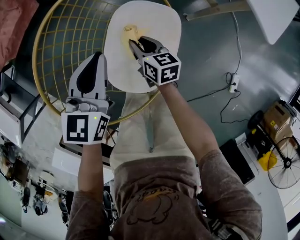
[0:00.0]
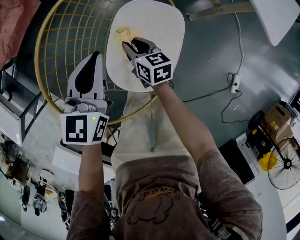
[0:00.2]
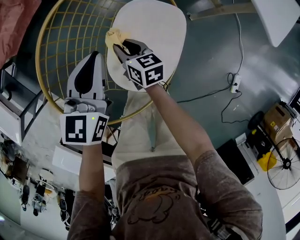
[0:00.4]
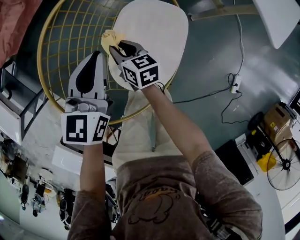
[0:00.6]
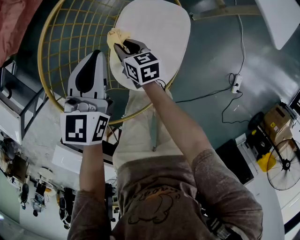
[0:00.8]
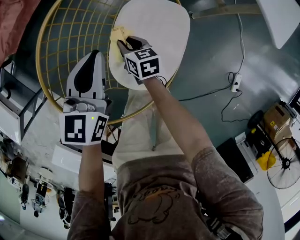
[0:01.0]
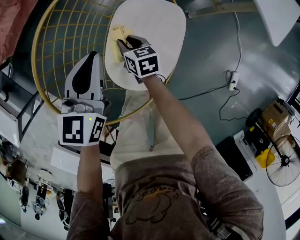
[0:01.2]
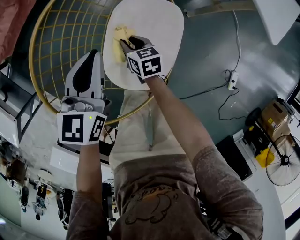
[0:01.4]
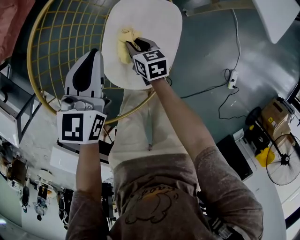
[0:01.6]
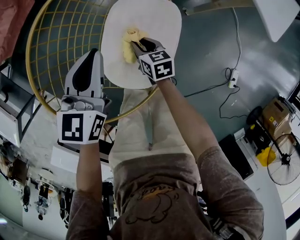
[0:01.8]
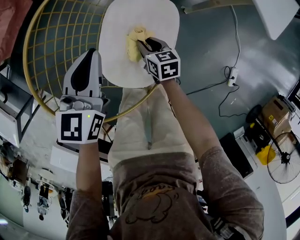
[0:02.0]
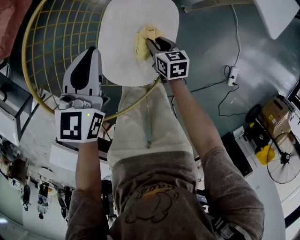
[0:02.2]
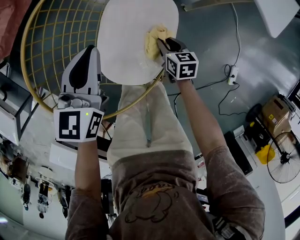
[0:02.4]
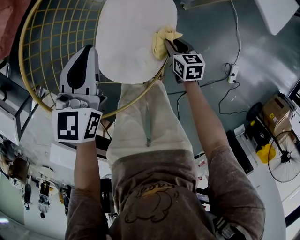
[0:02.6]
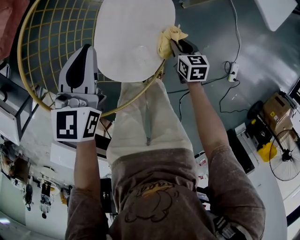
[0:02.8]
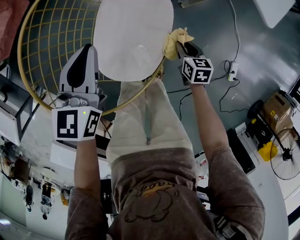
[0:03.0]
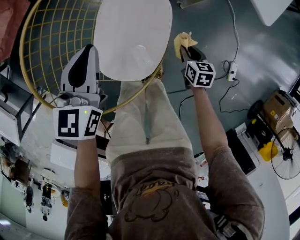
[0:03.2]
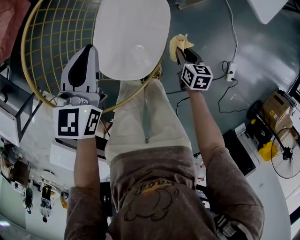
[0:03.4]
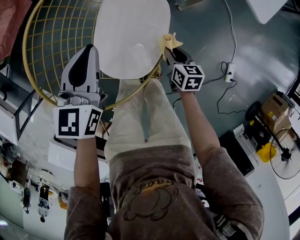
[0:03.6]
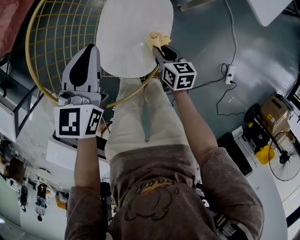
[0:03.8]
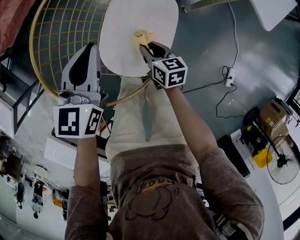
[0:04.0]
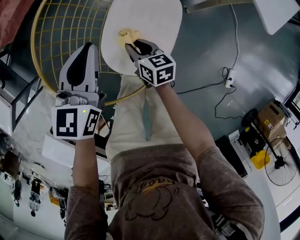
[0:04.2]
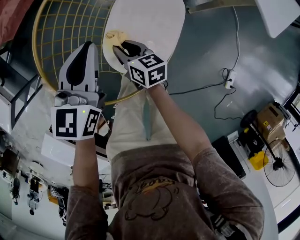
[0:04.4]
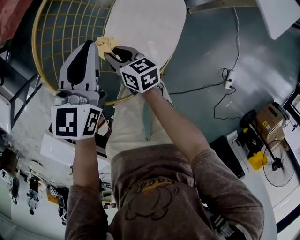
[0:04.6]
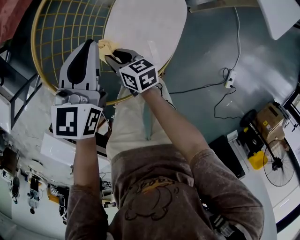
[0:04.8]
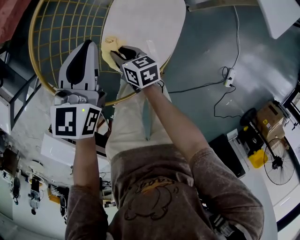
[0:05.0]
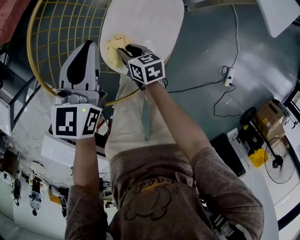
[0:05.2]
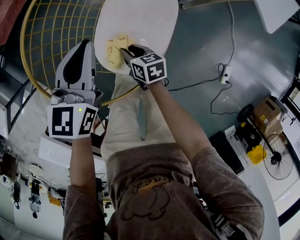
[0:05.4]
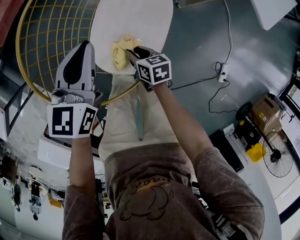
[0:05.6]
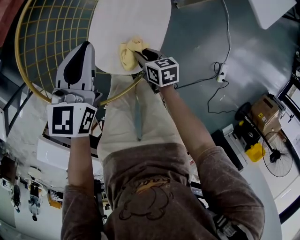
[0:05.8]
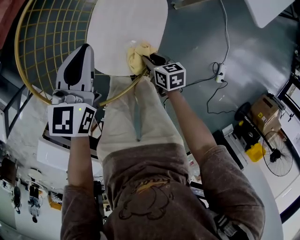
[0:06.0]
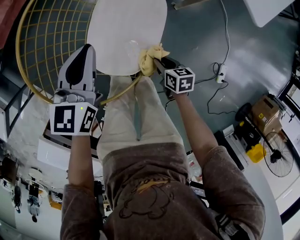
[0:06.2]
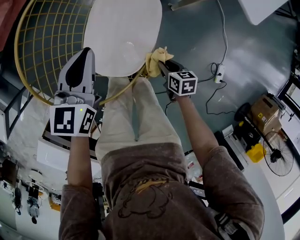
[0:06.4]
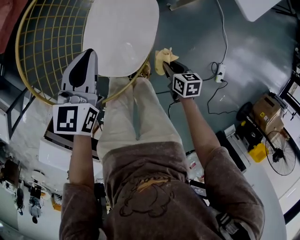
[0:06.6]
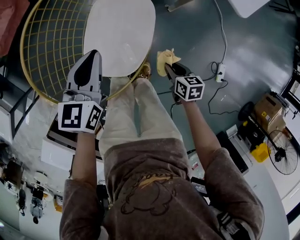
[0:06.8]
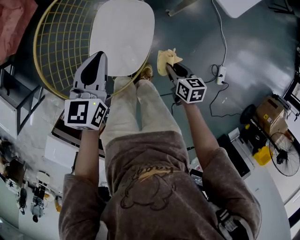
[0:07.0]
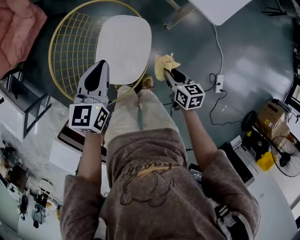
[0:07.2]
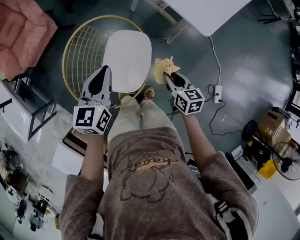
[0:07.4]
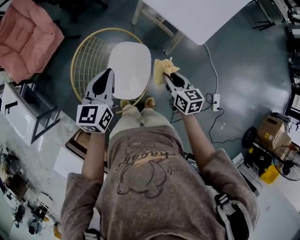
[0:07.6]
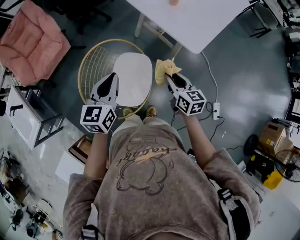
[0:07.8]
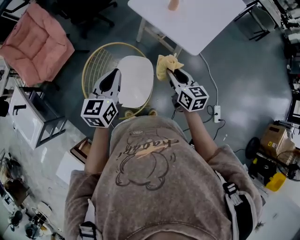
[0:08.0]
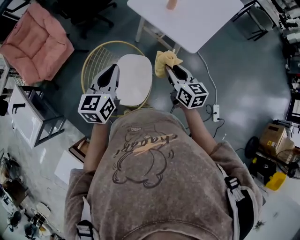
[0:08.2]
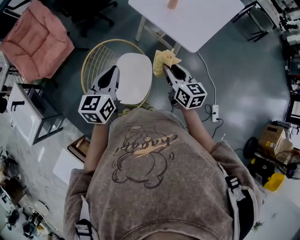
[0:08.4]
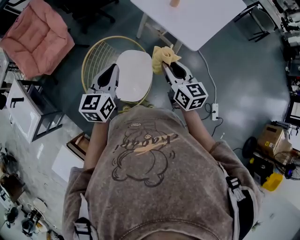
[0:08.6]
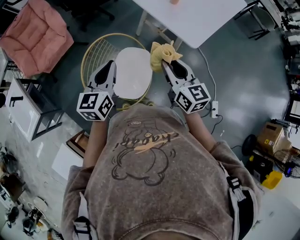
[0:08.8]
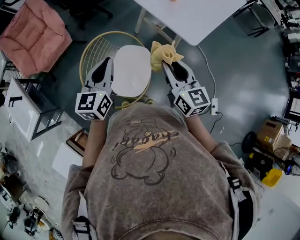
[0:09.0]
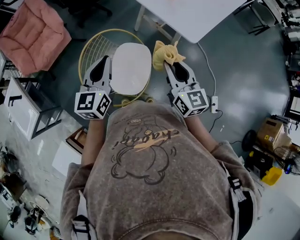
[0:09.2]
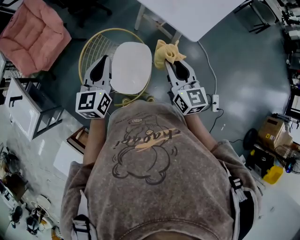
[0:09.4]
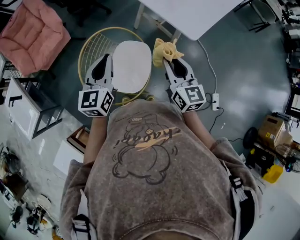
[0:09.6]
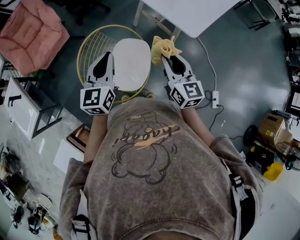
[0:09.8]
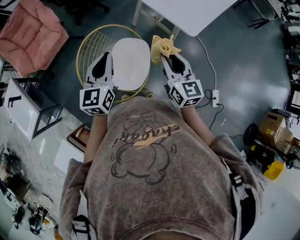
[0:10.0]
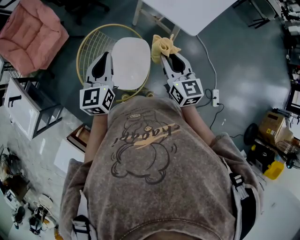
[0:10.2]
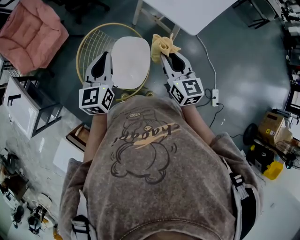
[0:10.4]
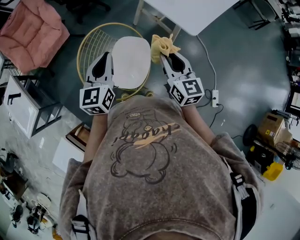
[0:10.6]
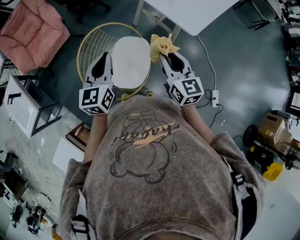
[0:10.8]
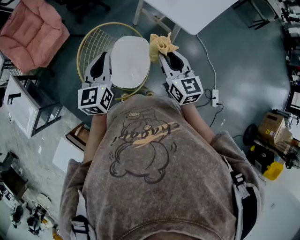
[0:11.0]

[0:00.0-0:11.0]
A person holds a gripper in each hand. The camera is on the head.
0.0 to 1.6 s: The right gripper shifts approximately 5 cm downward, and travels to the left and back again, roughly 10 cm each way.
1.6 to 3.2 s: The right gripper is displaced to the right by about 25 cm, and rotates roughly 20 degrees.
3.2 to 4.8 s: The right gripper shifts by roughly 35 cm, and rotates some 40 degrees.
4.8 to 6.2 s: The right gripper is displaced to the right and backward by roughly 25 cm, and rotates some 30 degrees, while the left gripper changes place by approximately 5 cm.
6.2 to 7.8 s: The left gripper travels upward by approximately 25 cm, while the right gripper is displaced upward by roughly 40 cm, and tips its fingers upward by some 30 degrees.
7.8 to 9.4 s: The left gripper moves about 5 cm; the right gripper moves upward, about 10 cm, and turns by approximately 20 degrees.
9.4 to 11.0 s: The grippers make only small movements.

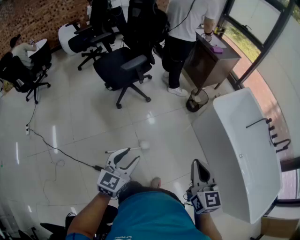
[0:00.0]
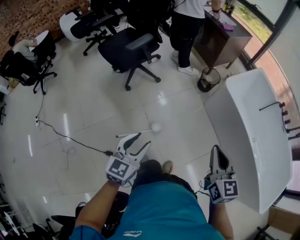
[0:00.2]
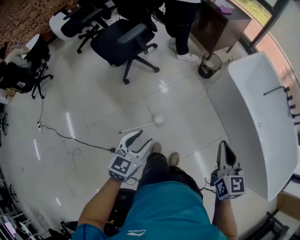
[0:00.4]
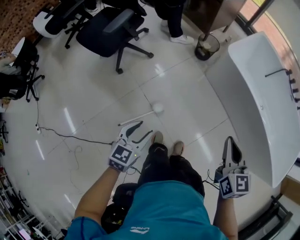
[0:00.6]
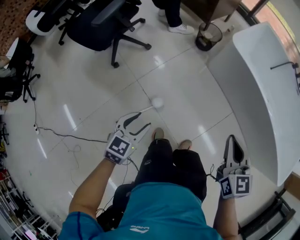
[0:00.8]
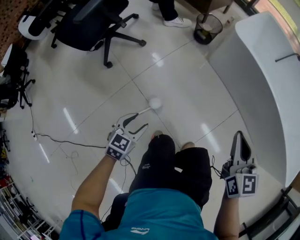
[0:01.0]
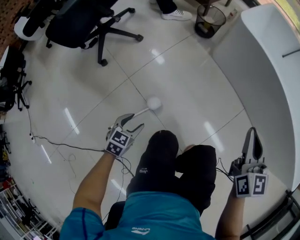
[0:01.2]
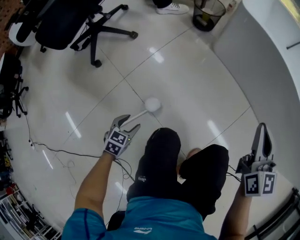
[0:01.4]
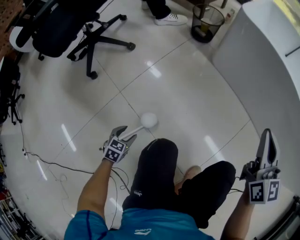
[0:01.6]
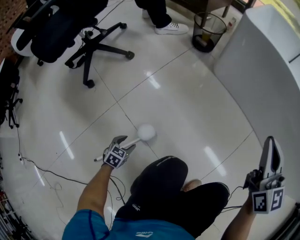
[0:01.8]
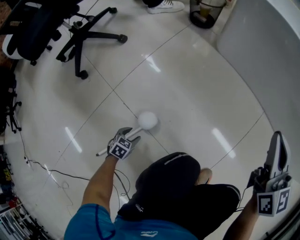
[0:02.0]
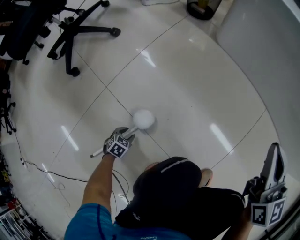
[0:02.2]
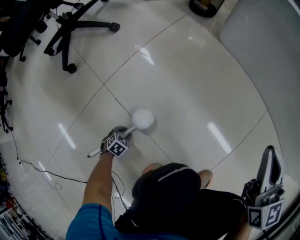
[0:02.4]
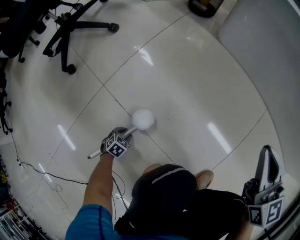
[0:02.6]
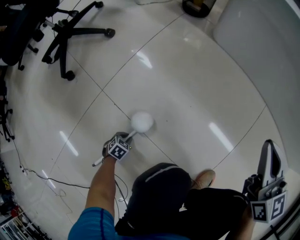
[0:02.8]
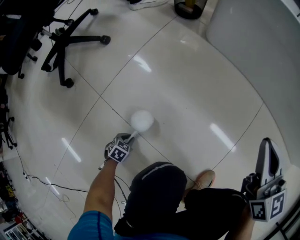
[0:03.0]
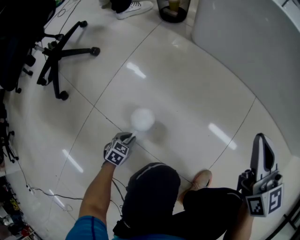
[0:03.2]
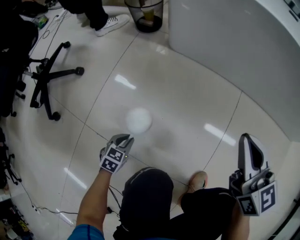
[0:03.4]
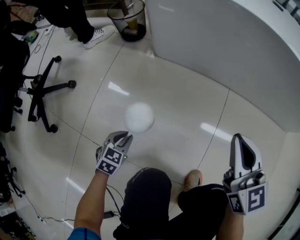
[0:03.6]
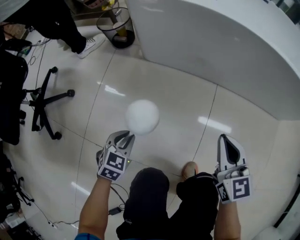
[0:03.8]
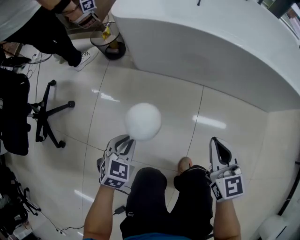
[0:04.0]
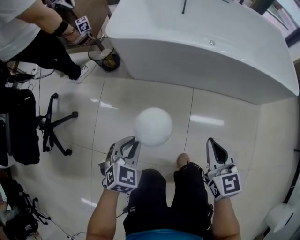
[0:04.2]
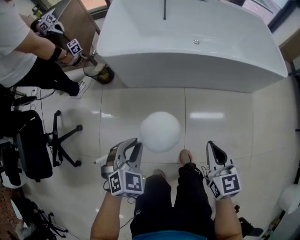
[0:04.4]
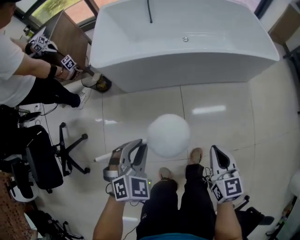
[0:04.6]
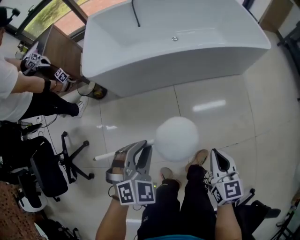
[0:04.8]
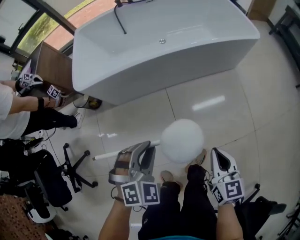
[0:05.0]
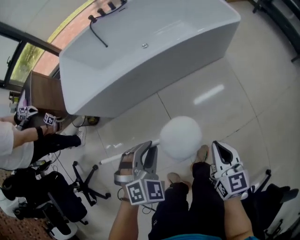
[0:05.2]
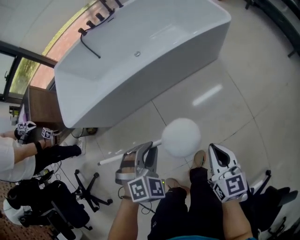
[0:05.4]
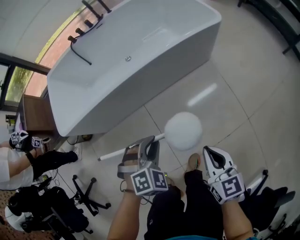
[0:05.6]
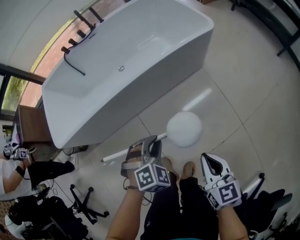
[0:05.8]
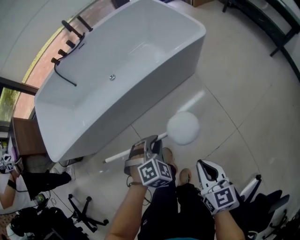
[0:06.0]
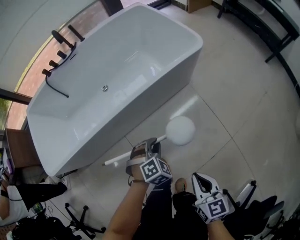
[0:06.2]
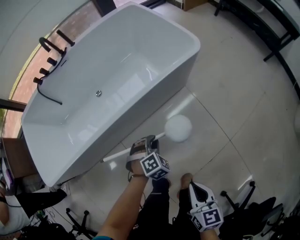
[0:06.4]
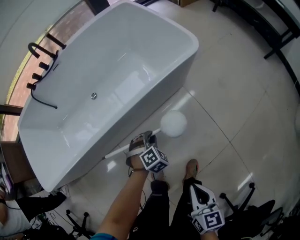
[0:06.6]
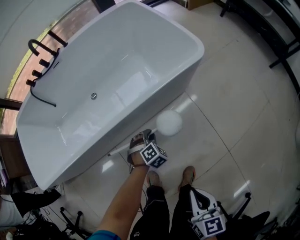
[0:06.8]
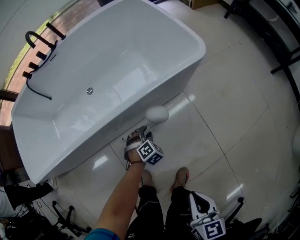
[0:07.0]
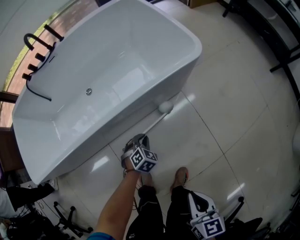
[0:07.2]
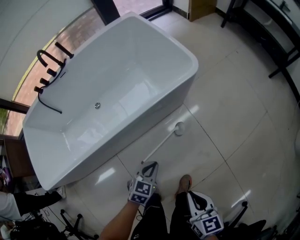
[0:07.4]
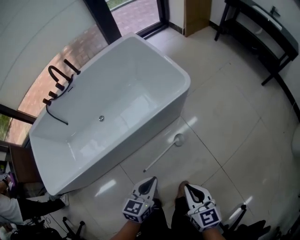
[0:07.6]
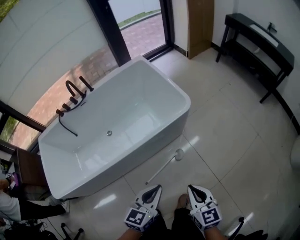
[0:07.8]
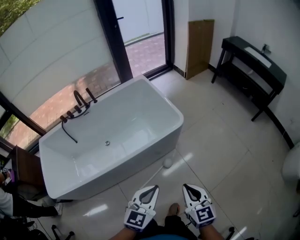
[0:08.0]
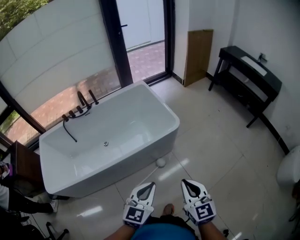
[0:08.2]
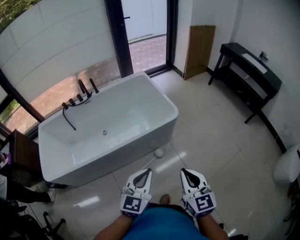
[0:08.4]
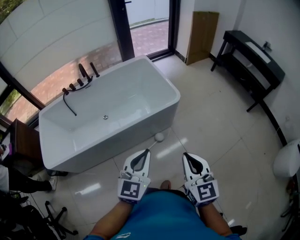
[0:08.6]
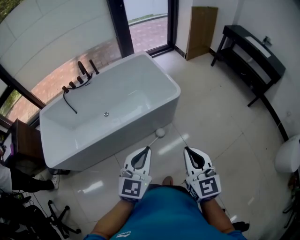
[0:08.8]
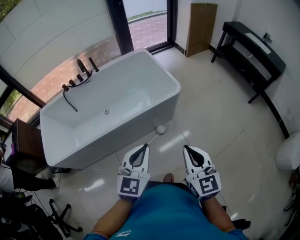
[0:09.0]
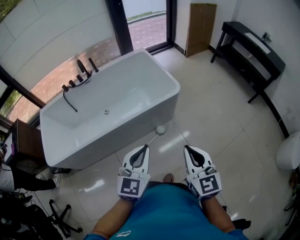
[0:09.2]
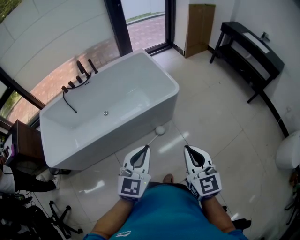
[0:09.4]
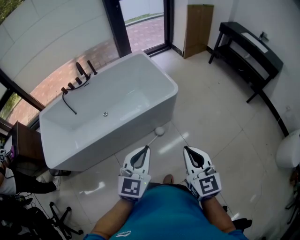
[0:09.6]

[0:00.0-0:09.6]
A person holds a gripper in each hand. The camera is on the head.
0.0 to 1.6 s: The right gripper is displaced downward and forward by about 50 cm, and swivels some 30 degrees. The left gripper heads downward, covering about 70 cm, and tips its fingers downward by approximately 30 degrees.
1.6 to 3.2 s: The grippers both shift downward by approximately 20 cm. The left gripper turns by roughly 20 degrees, and closes.
3.2 to 4.8 s: The right gripper shifts roughly 35 cm upward, and turns by approximately 50 degrees. Meanwhile the left gripper moves upward, roughly 80 cm, and rolls clockwise, seen from behind, by some 60 degrees.
4.8 to 6.4 s: The right gripper moves to the right and forward, some 40 cm, and turns by roughly 30 degrees; the left gripper travels to the right, forward and downward by roughly 70 cm, and turns by roughly 30 degrees.
6.4 to 8.0 s: The left gripper is displaced upward by about 40 cm, and points its fingers some 40 degrees further upward. The right gripper travels upward, to the right and forward by approximately 30 cm, and rotates some 20 degrees.
8.0 to 9.6 s: The left gripper is displaced backward and upward by some 10 cm, while the right gripper goes approximately 15 cm upward and backward.

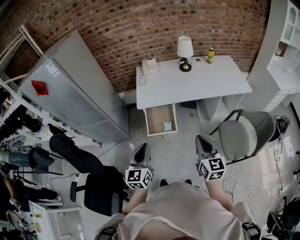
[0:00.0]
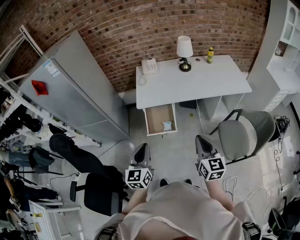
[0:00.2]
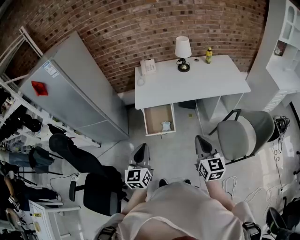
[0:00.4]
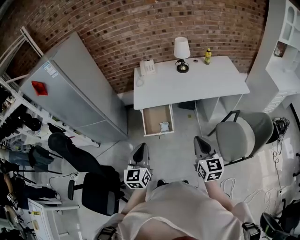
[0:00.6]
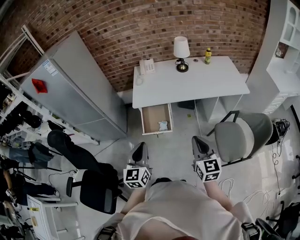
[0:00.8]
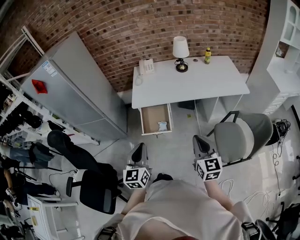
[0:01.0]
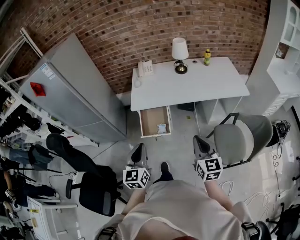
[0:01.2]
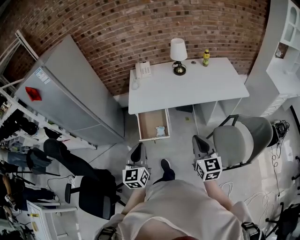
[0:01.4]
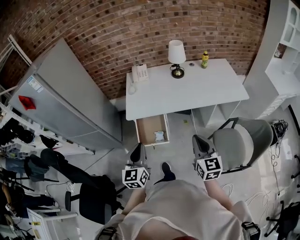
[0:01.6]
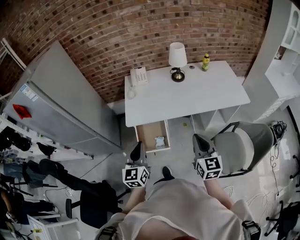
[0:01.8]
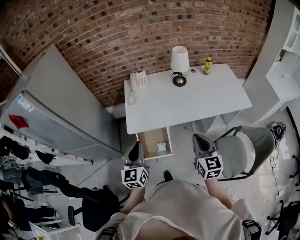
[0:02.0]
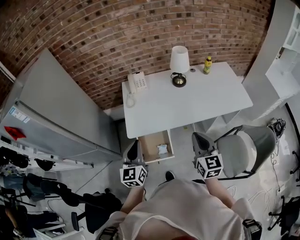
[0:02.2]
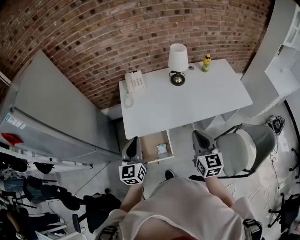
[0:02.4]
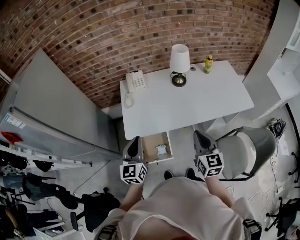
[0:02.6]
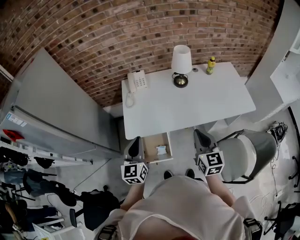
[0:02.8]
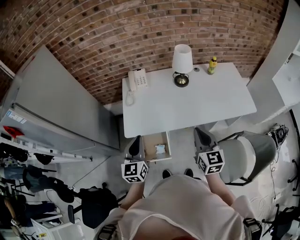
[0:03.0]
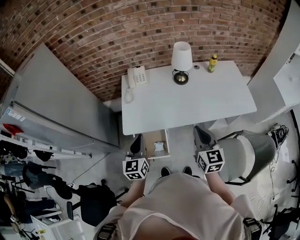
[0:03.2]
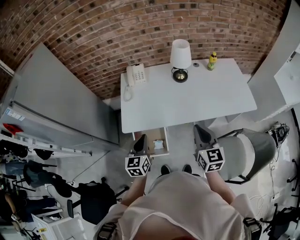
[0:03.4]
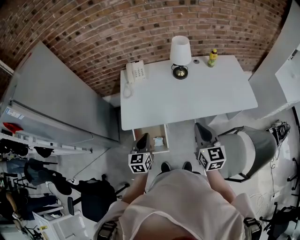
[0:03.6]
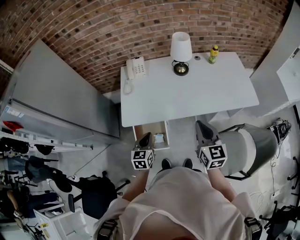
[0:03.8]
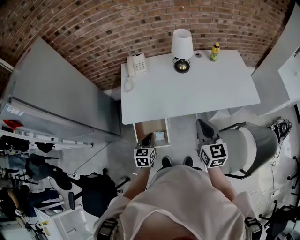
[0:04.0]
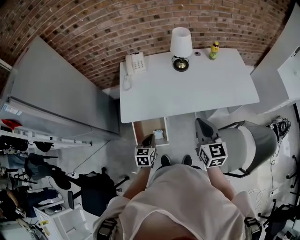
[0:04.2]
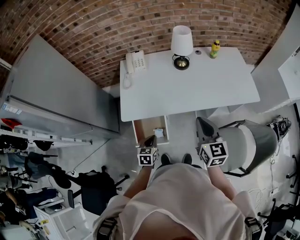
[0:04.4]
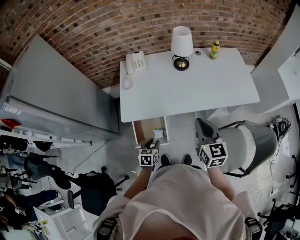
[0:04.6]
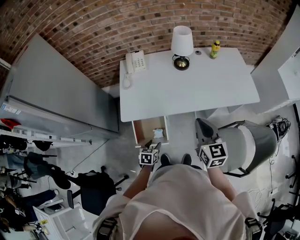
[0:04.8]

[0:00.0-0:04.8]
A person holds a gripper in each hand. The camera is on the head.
0.0 to 1.6 s: Both grippers travel together forward and to the right, some 10 cm.
1.6 to 3.2 s: Both grippers move forward, about 25 cm.
3.2 to 4.8 s: The left gripper goes some 25 cm downward, tips its fingers downward by about 40 degrees, and opens up.
